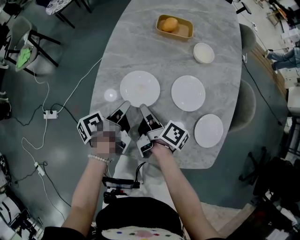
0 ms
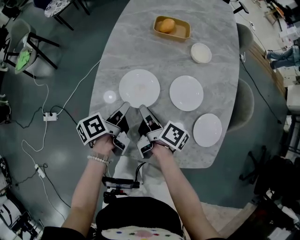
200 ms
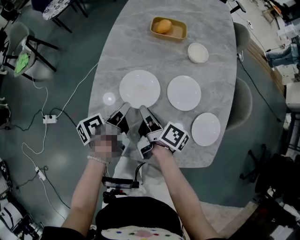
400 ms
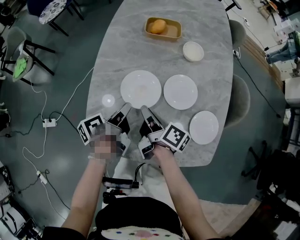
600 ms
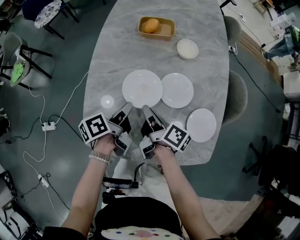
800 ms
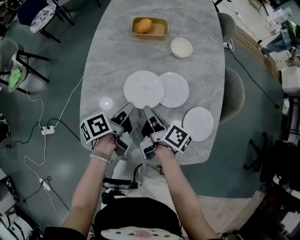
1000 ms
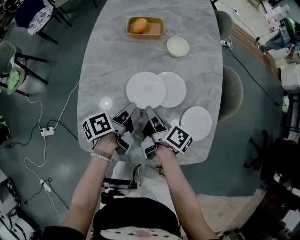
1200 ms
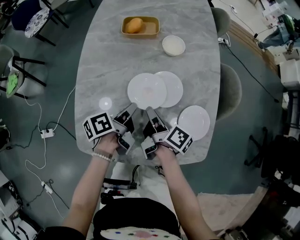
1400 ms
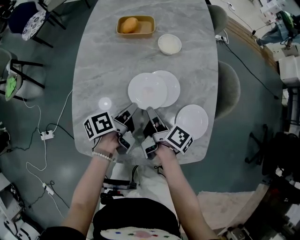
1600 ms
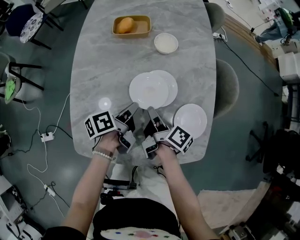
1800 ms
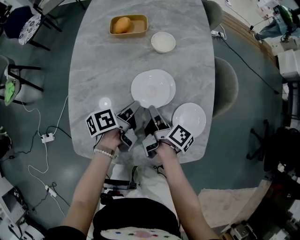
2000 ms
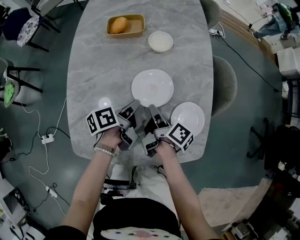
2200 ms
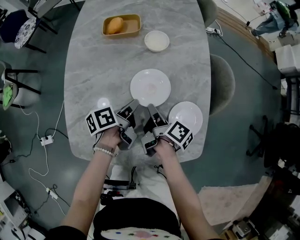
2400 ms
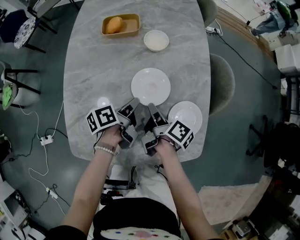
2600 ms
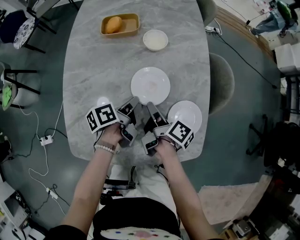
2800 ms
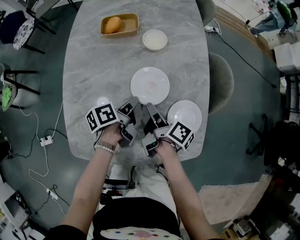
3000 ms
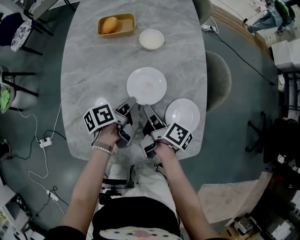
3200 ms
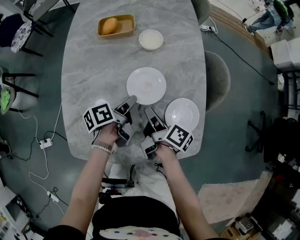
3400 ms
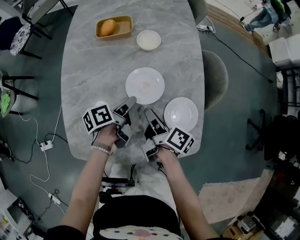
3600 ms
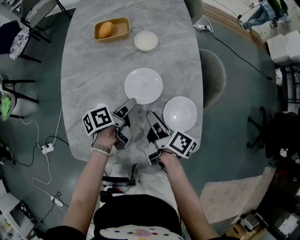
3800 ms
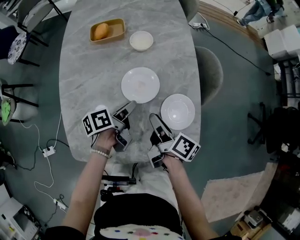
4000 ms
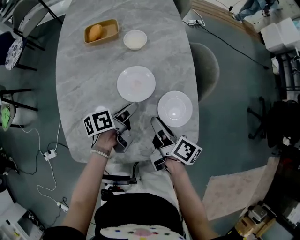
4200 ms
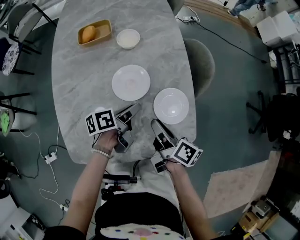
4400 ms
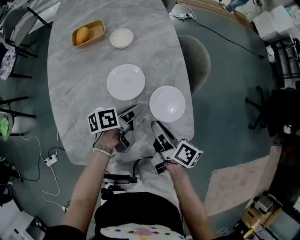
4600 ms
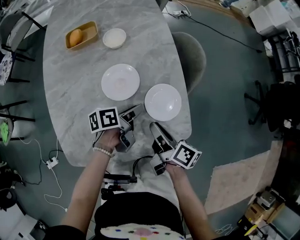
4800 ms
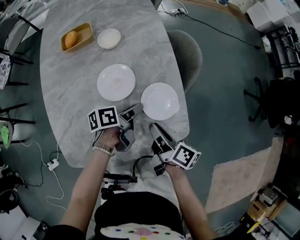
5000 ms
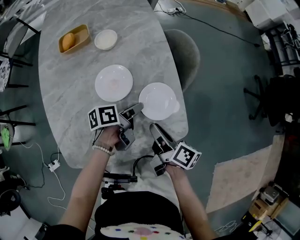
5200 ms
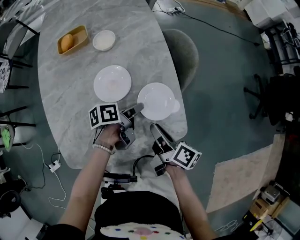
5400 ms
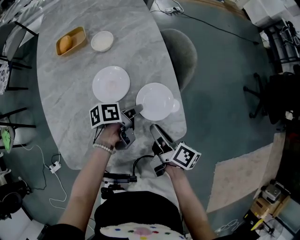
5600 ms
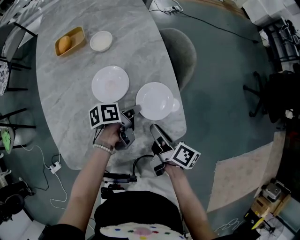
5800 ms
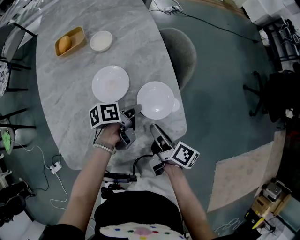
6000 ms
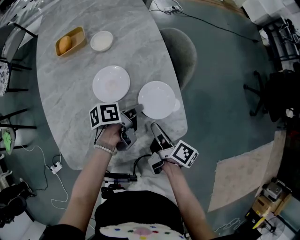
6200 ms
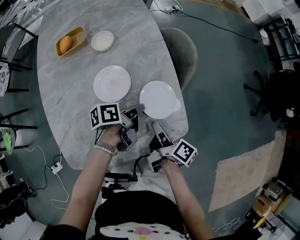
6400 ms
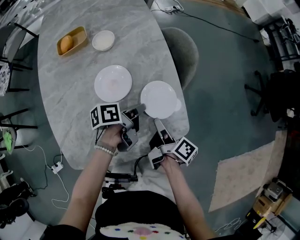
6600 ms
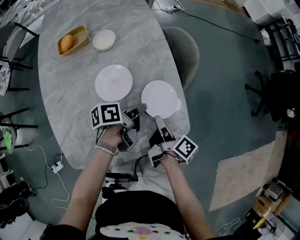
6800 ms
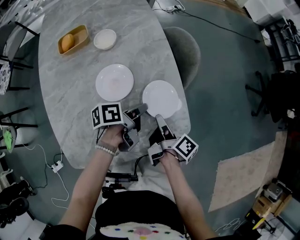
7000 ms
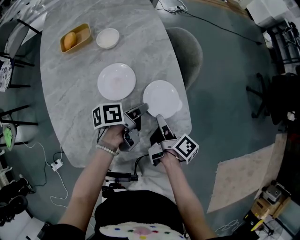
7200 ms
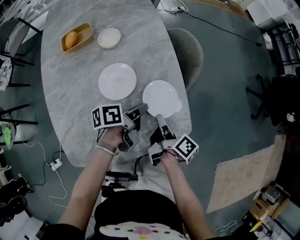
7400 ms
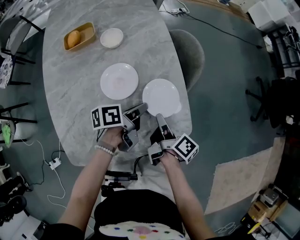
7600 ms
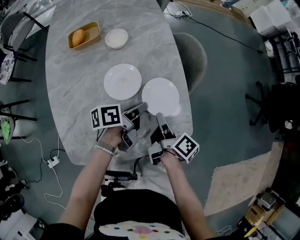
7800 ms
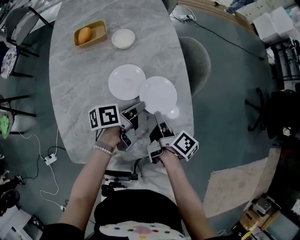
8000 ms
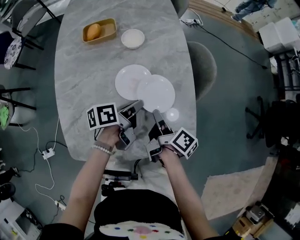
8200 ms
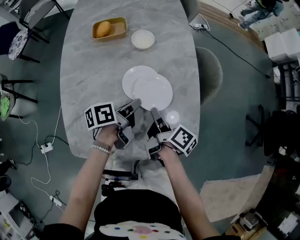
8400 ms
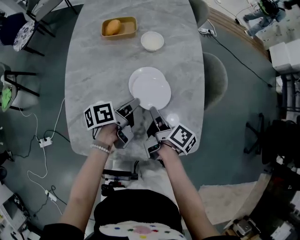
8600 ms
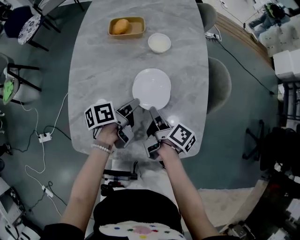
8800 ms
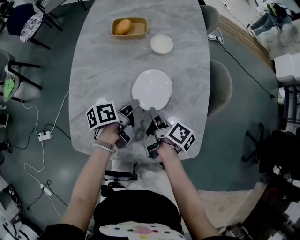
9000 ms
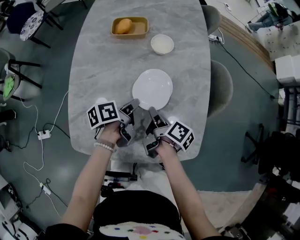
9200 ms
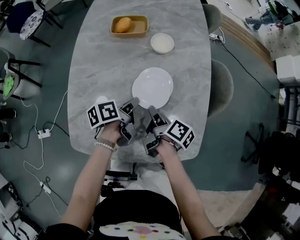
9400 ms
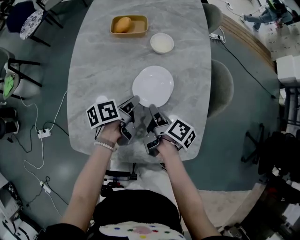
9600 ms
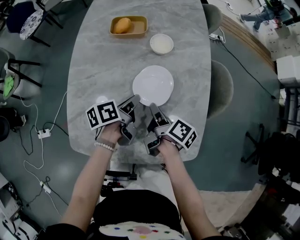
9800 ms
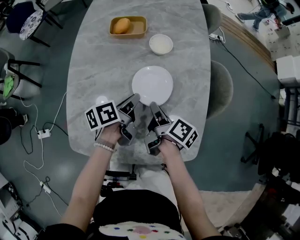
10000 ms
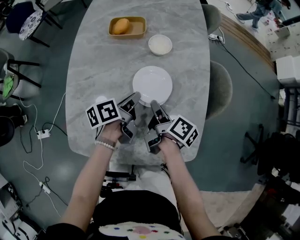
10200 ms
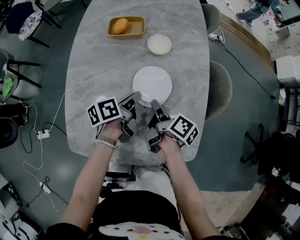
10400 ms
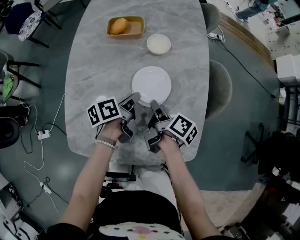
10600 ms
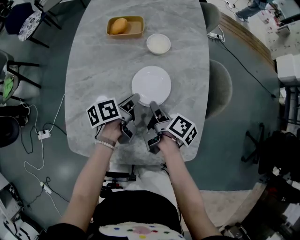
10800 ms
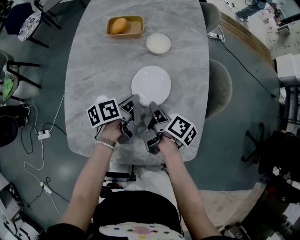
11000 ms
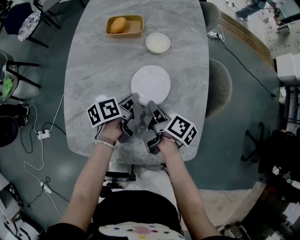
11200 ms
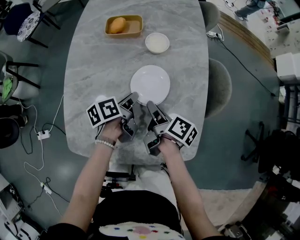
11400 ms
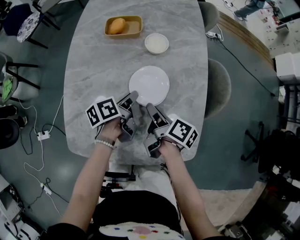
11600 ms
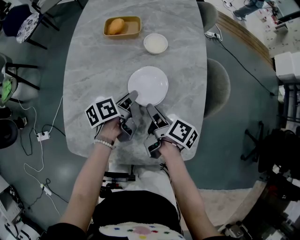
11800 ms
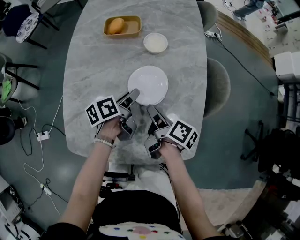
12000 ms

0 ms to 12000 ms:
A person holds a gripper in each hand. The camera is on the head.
0 ms to 1600 ms: The two grippers go approximately 15 cm to the right.
1600 ms to 3000 ms: There are only small adjustments of the grippers.
3000 ms to 4400 ms: The left gripper goes about 5 cm to the right, and opens, while the right gripper is displaced to the right and backward by approximately 10 cm.
4400 ms to 6000 ms: The grippers both shift to the right by some 5 cm. The left gripper closes its fingers.
6000 ms to 7600 ms: There are only small adjustments of the grippers.
7600 ms to 9000 ms: The right gripper moves approximately 15 cm, and turns by approximately 30 degrees; the left gripper changes place by approximately 15 cm, and turns by roughly 30 degrees.
9000 ms to 10400 ms: The grippers move only a little.
10400 ms to 12000 ms: The left gripper opens up, while the right gripper opens its fingers.

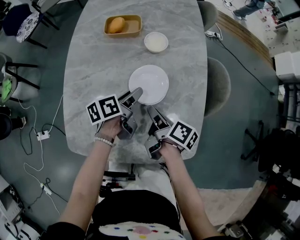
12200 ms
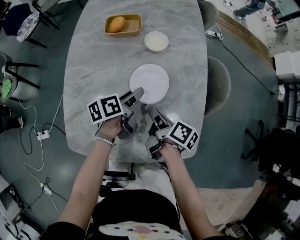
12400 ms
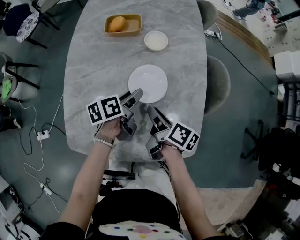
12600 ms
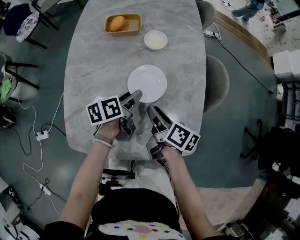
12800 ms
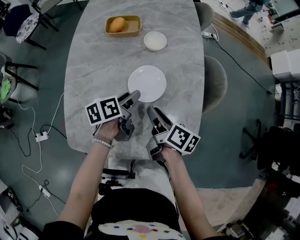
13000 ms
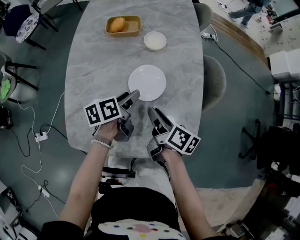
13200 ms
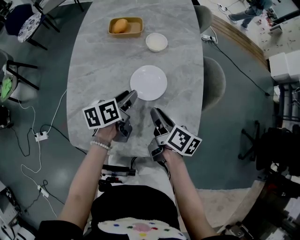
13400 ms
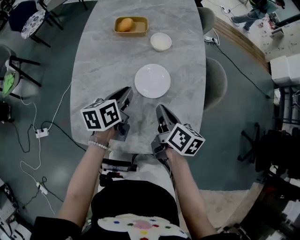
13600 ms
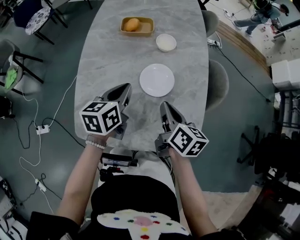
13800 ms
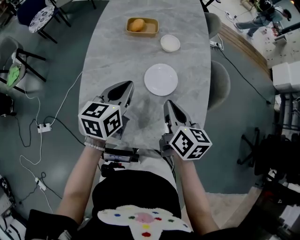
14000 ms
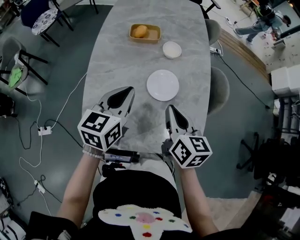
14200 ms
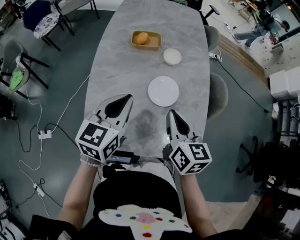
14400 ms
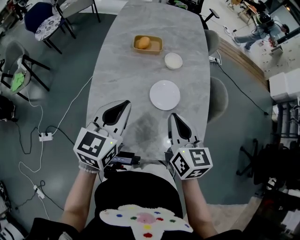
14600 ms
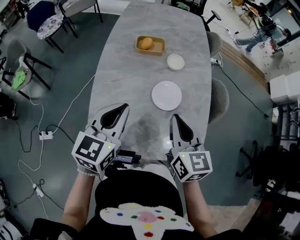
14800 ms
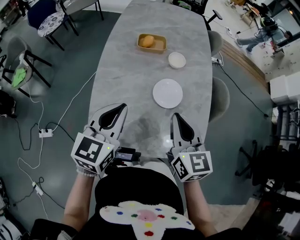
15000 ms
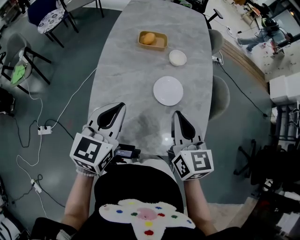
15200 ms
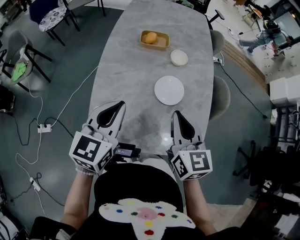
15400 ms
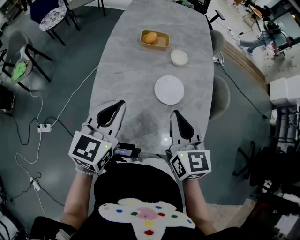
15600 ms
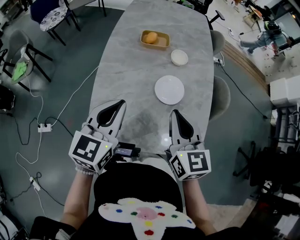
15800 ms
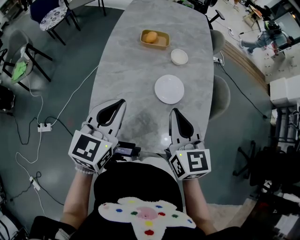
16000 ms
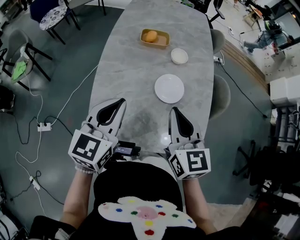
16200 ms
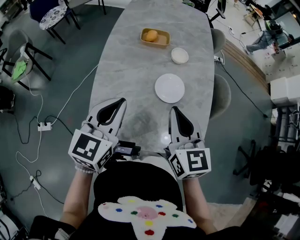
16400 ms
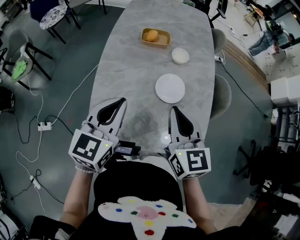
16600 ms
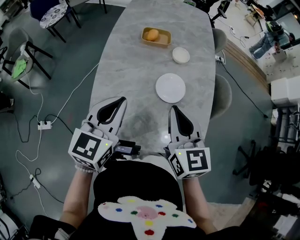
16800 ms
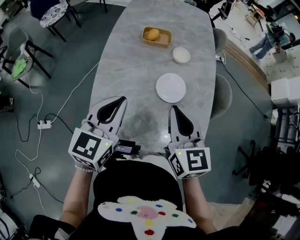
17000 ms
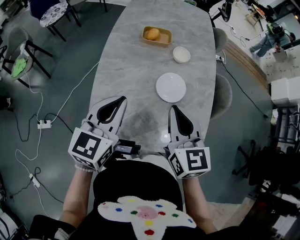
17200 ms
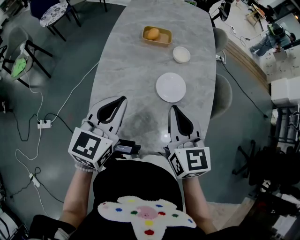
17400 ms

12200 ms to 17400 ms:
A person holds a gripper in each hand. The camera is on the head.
12200 ms to 14000 ms: The right gripper moves upward, about 10 cm, twists approximately 40 degrees counterclockwise, seen from behind, and closes. The left gripper goes approximately 15 cm upward and to the left, twists roughly 40 degrees clockwise, seen from behind, and closes.
14000 ms to 15600 ms: The left gripper heads upward, backward and to the left, covering about 15 cm; the right gripper heads upward, covering some 10 cm, and rotates roughly 30 degrees.
15600 ms to 17400 ms: There are only small adjustments of the grippers.

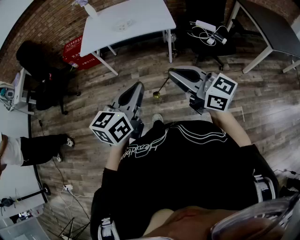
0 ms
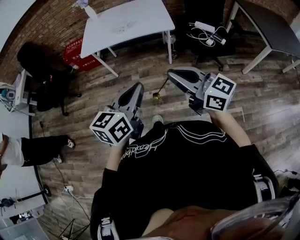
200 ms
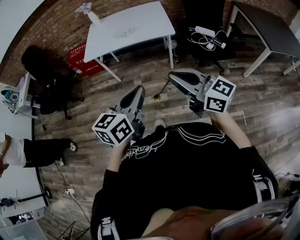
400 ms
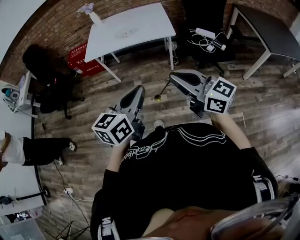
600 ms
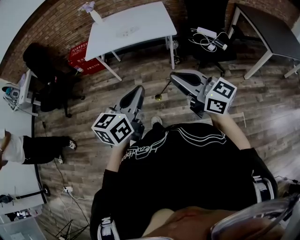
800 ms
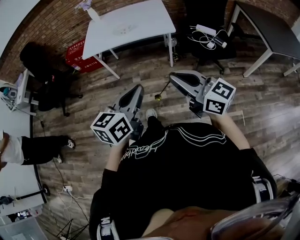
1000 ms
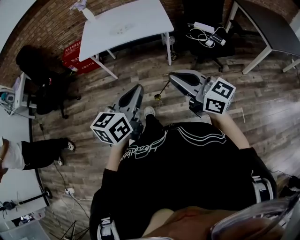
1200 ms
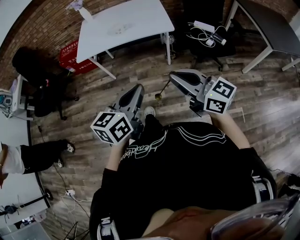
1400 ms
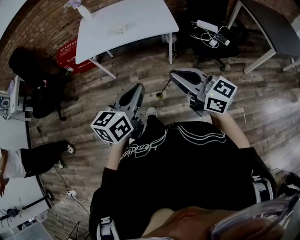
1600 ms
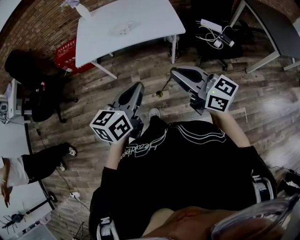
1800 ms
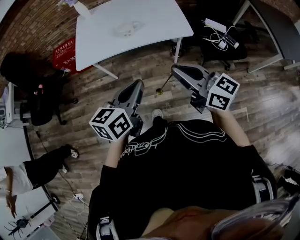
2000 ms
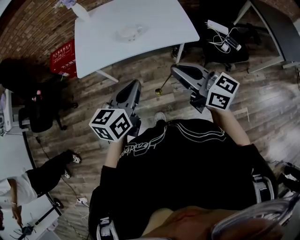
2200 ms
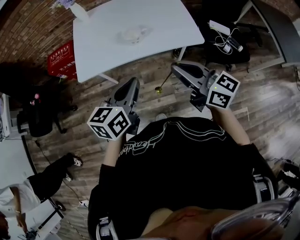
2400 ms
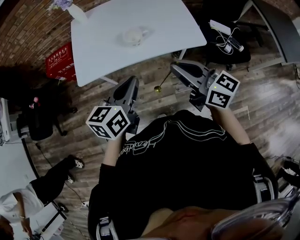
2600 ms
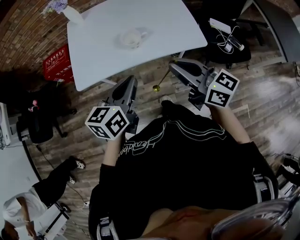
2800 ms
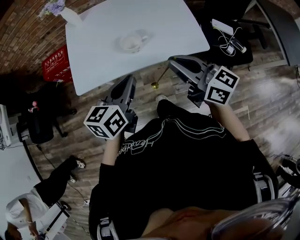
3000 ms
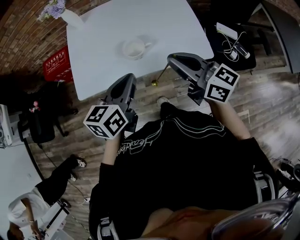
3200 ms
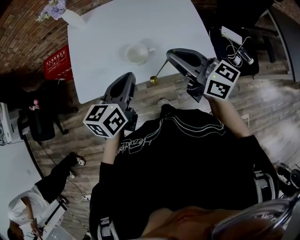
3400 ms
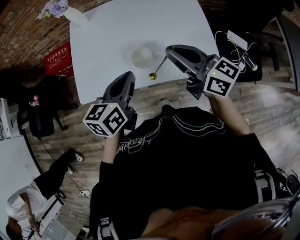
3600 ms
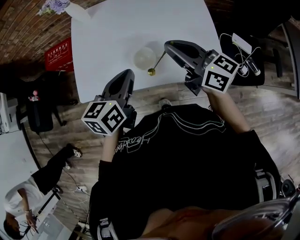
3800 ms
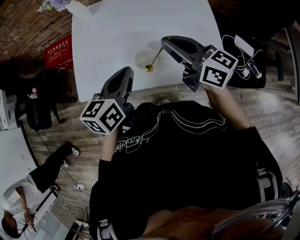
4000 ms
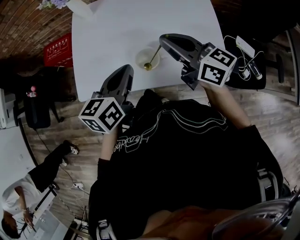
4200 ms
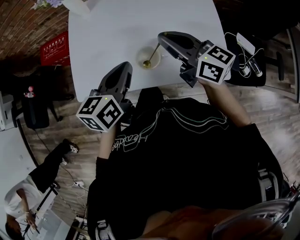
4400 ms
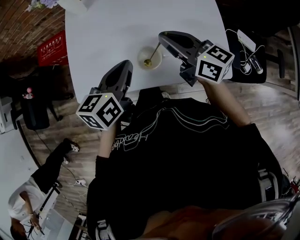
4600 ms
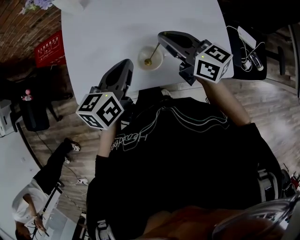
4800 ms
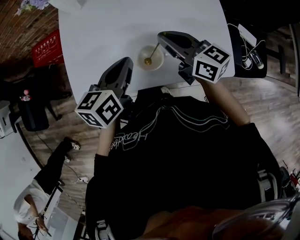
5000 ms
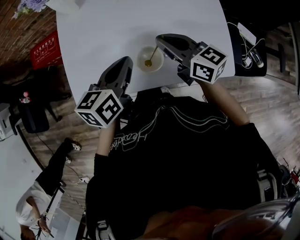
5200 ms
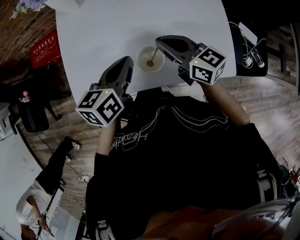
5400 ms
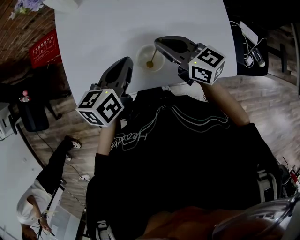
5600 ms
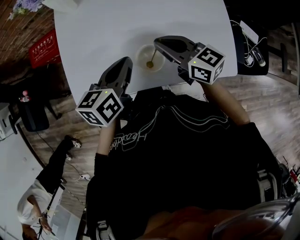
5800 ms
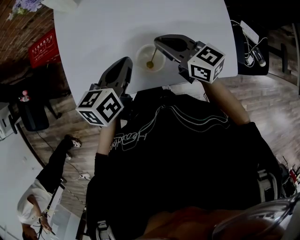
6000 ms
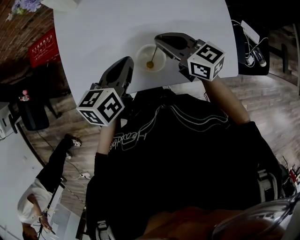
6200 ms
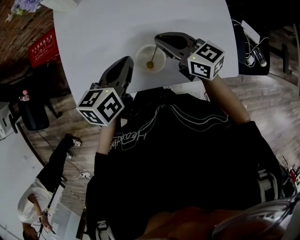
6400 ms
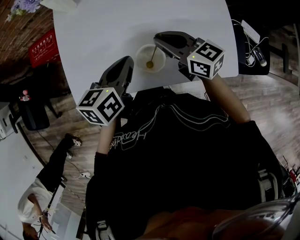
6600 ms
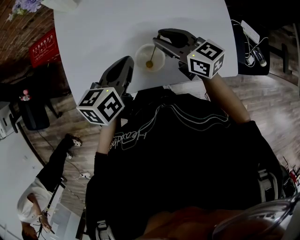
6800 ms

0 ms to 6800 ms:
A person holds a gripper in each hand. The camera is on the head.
0 ms to 1400 ms: The left gripper changes place by approximately 5 cm, while the right gripper ends up approximately 5 cm from where it was.
1400 ms to 2800 ms: The pair of grippers is taken forward, roughly 40 cm.
2800 ms to 4000 ms: Both grippers travel together forward, approximately 25 cm.
4000 ms to 5400 ms: The left gripper heads forward and downward, covering approximately 10 cm; the right gripper moves downward, roughly 10 cm.
5400 ms to 6800 ms: The right gripper opens.
